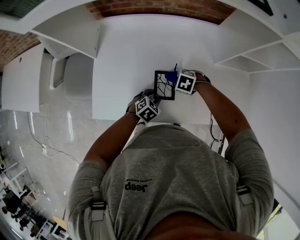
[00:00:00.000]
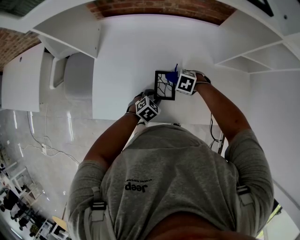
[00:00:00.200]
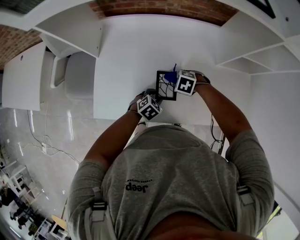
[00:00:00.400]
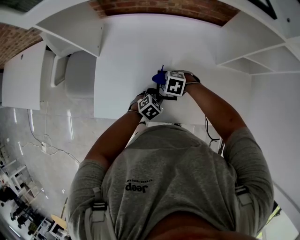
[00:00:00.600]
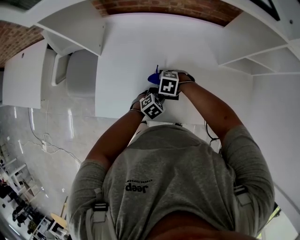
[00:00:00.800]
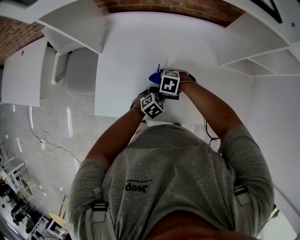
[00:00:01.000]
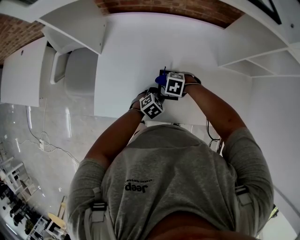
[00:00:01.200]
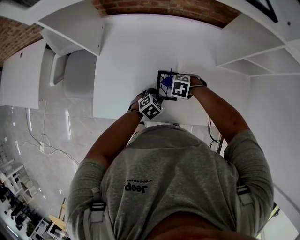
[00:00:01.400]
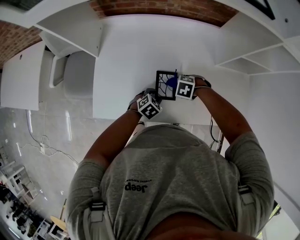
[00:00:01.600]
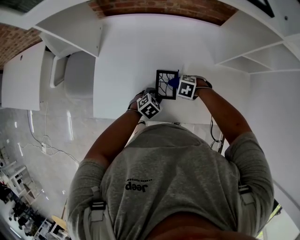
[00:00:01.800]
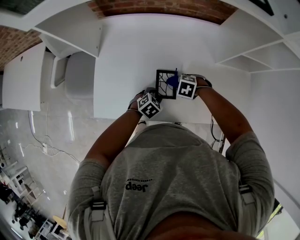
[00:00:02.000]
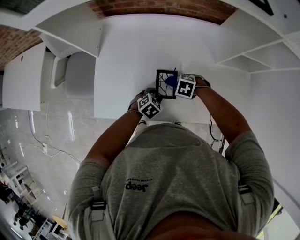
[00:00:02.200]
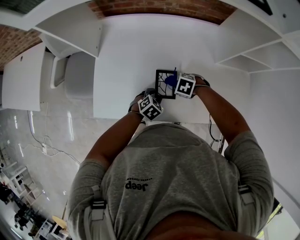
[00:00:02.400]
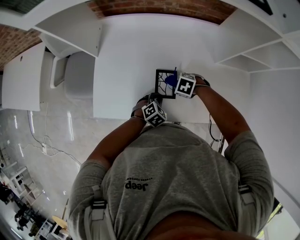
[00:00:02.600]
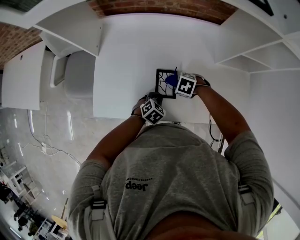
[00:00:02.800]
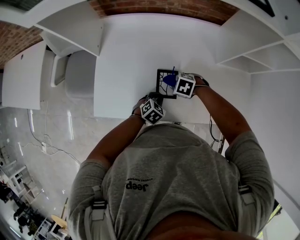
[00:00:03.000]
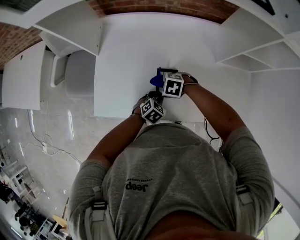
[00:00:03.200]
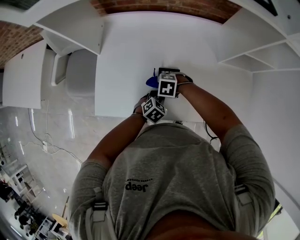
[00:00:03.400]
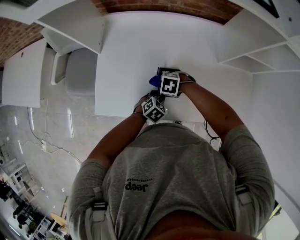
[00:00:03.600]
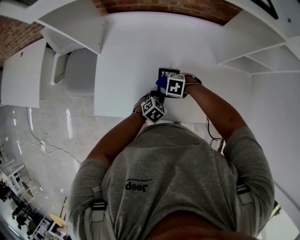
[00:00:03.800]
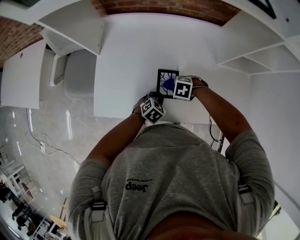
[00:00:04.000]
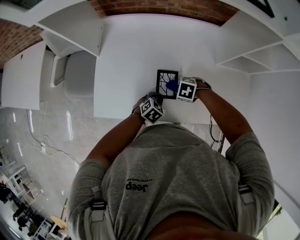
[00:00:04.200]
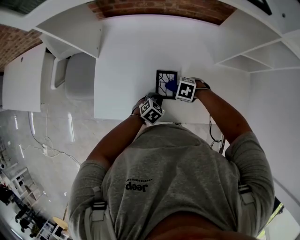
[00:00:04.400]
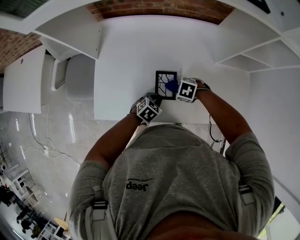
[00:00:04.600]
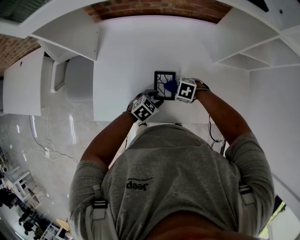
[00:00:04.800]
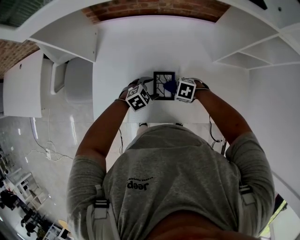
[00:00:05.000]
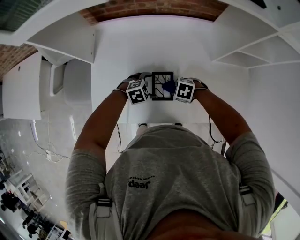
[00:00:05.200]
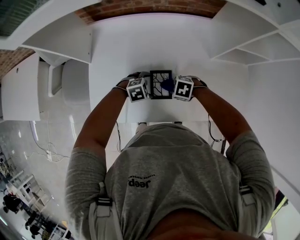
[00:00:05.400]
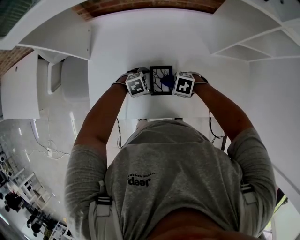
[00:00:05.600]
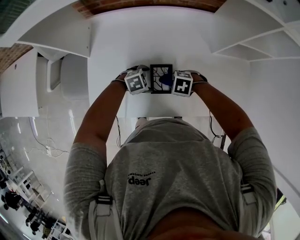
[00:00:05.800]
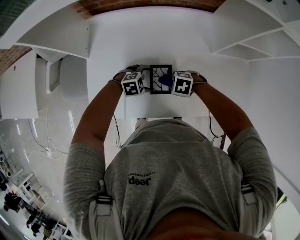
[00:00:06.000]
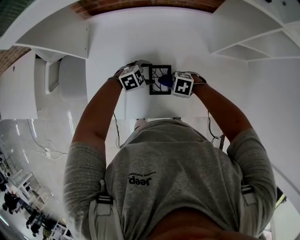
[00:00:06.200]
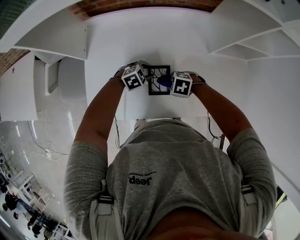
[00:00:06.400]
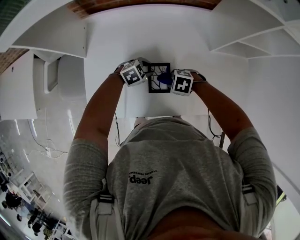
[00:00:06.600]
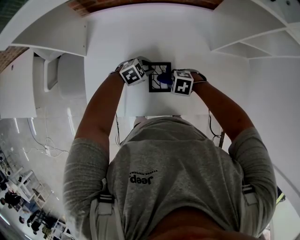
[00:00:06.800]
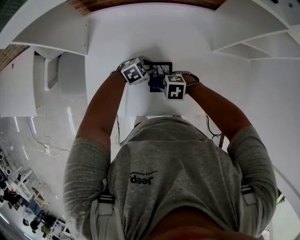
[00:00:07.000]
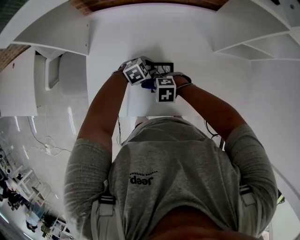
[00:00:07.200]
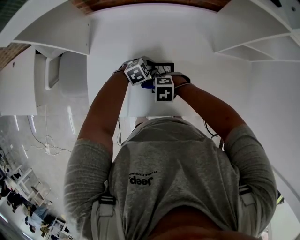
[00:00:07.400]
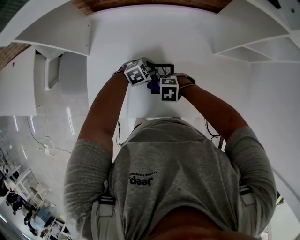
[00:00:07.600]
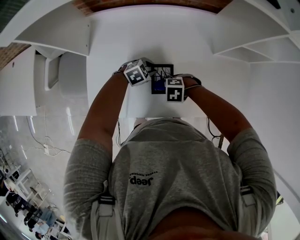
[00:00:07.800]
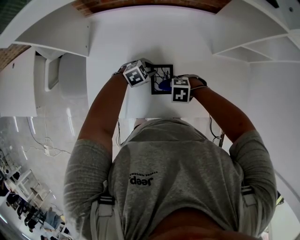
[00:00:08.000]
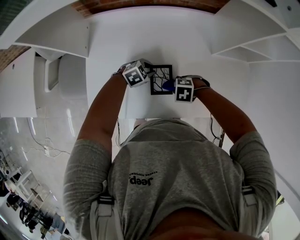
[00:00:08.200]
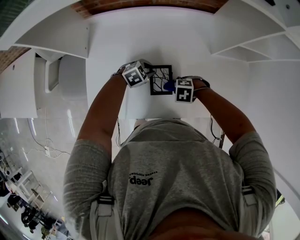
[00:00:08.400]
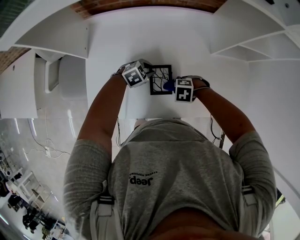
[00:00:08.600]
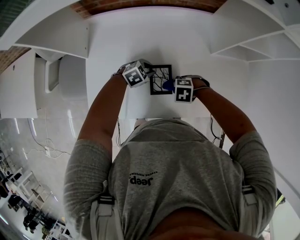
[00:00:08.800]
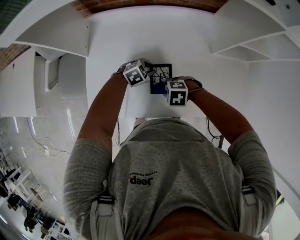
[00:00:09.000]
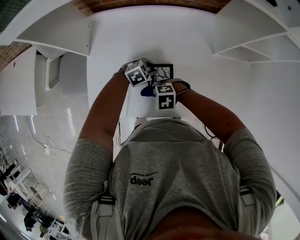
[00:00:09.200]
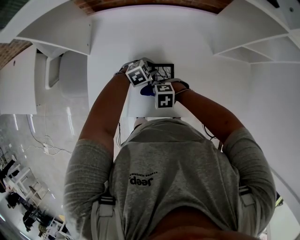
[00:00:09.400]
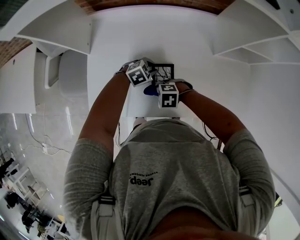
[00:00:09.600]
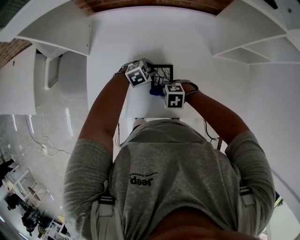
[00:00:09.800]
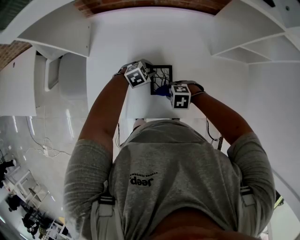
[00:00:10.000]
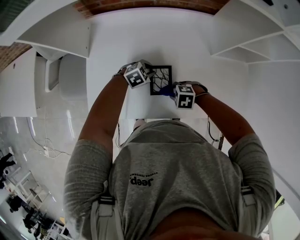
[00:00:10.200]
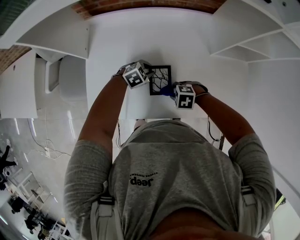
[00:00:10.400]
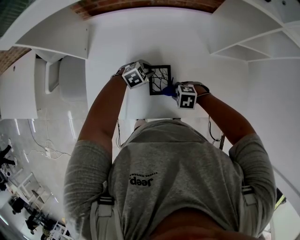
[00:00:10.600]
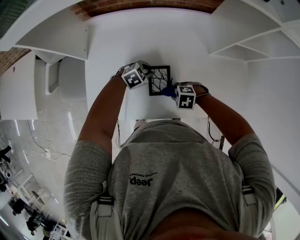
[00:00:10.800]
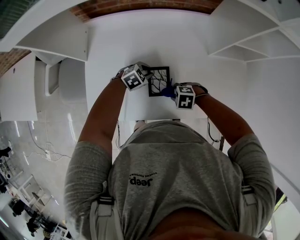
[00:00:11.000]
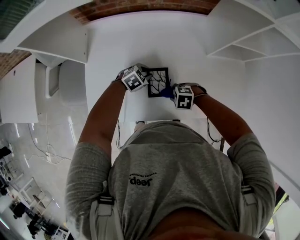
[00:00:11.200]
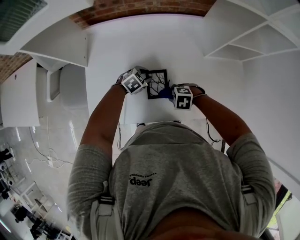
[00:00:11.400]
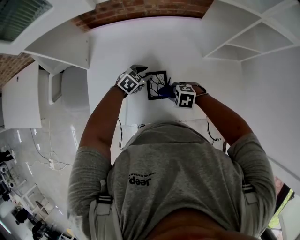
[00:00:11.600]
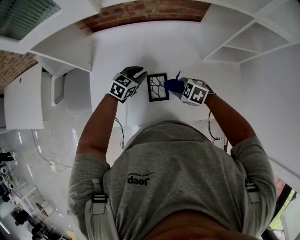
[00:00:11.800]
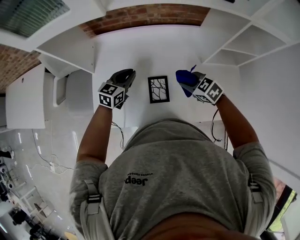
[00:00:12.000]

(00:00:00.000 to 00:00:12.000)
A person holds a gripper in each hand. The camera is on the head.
00:00:01.600 - 00:00:03.000: The grippers make only small movements.
00:00:04.400 - 00:00:06.000: The left gripper changes place by approximately 5 cm, rotates roughly 40 degrees, and opens its fingers.
00:00:06.000 - 00:00:07.600: The left gripper shifts by roughly 5 cm, and closes; the right gripper ends up some 5 cm from where it was.
00:00:09.000 - 00:00:10.400: The right gripper moves some 5 cm.
00:00:10.400 - 00:00:12.000: Both grippers move upward, some 15 cm. The left gripper tilts its fingers some 30 degrees upward. Meanwhile the right gripper turns by approximately 40 degrees.

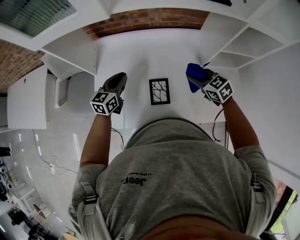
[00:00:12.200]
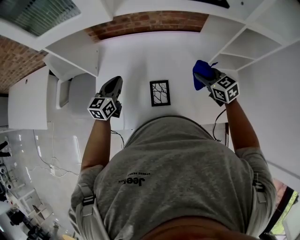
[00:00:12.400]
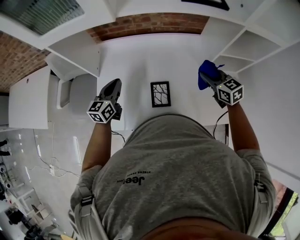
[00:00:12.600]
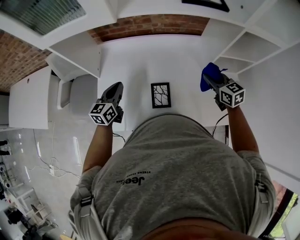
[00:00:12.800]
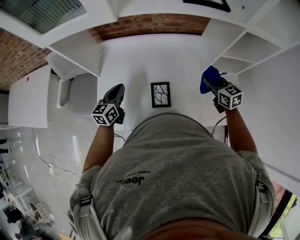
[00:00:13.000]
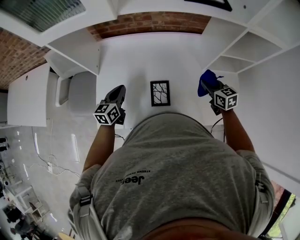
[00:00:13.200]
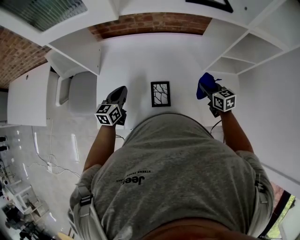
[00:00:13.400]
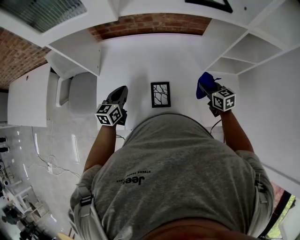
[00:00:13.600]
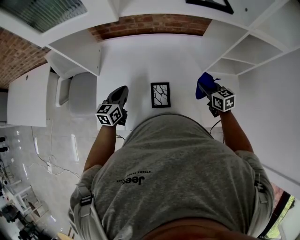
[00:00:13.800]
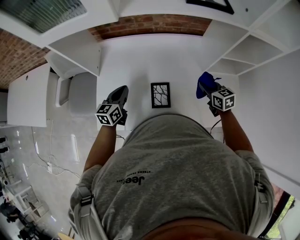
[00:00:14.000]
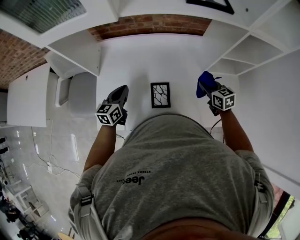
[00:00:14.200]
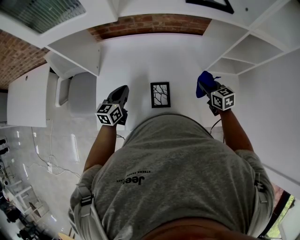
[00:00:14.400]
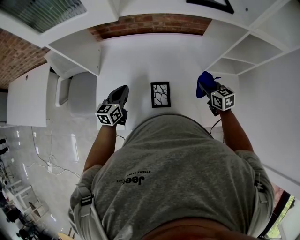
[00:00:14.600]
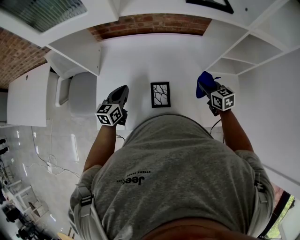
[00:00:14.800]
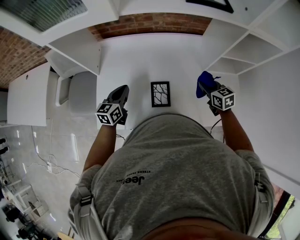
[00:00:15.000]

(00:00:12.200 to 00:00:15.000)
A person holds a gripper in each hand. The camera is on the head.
00:00:12.200 - 00:00:13.600: The left gripper ends up some 5 cm from where it was. Meanwhile the right gripper travels to the right by about 5 cm, and turns by approximately 20 degrees.
00:00:13.600 - 00:00:15.000: The two grippers keep their place.

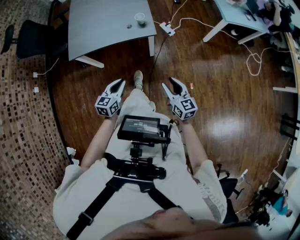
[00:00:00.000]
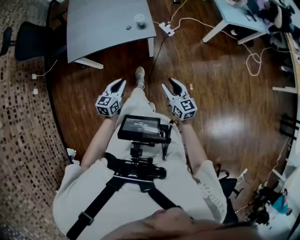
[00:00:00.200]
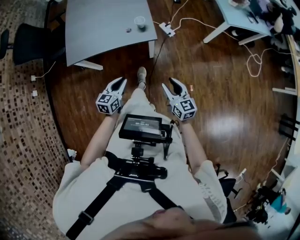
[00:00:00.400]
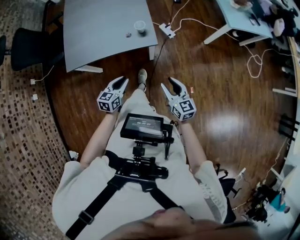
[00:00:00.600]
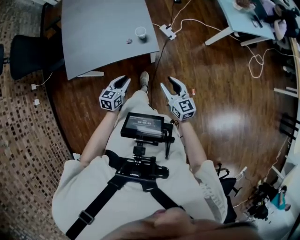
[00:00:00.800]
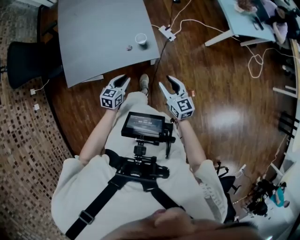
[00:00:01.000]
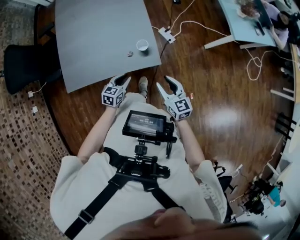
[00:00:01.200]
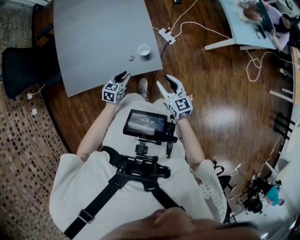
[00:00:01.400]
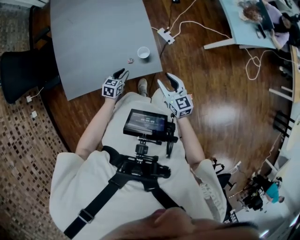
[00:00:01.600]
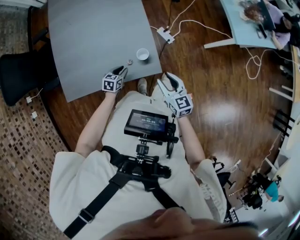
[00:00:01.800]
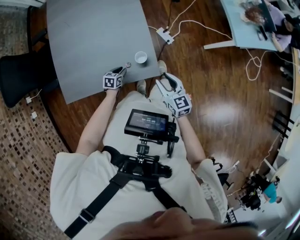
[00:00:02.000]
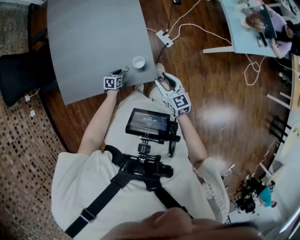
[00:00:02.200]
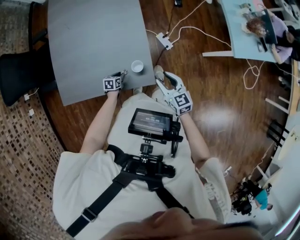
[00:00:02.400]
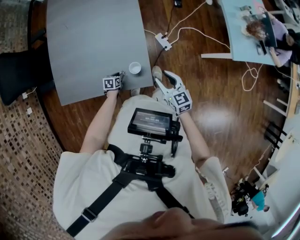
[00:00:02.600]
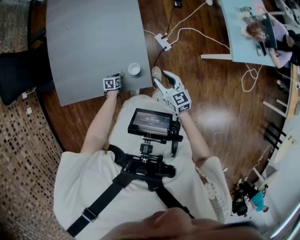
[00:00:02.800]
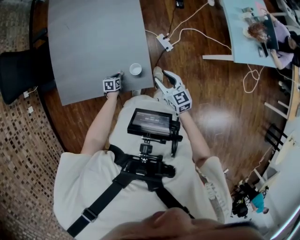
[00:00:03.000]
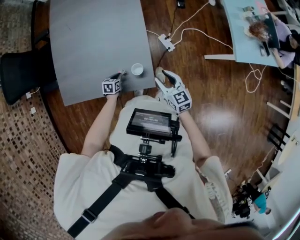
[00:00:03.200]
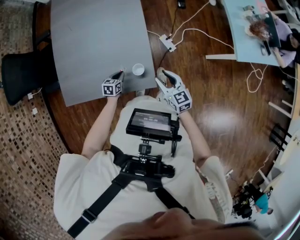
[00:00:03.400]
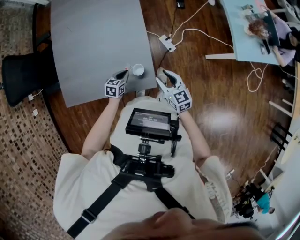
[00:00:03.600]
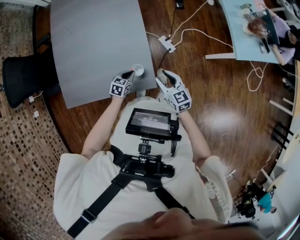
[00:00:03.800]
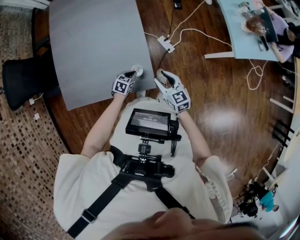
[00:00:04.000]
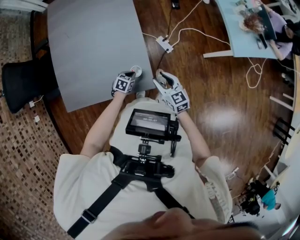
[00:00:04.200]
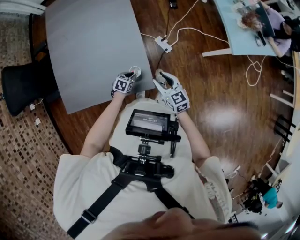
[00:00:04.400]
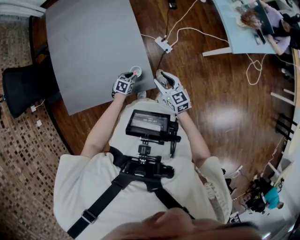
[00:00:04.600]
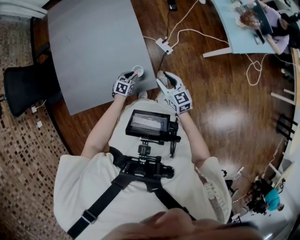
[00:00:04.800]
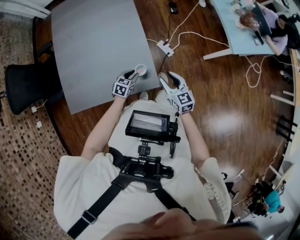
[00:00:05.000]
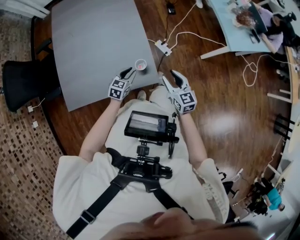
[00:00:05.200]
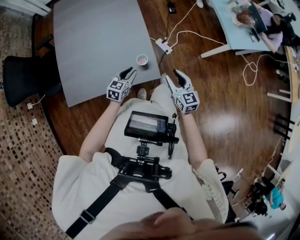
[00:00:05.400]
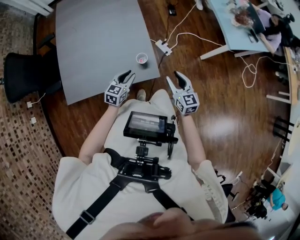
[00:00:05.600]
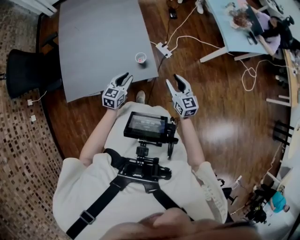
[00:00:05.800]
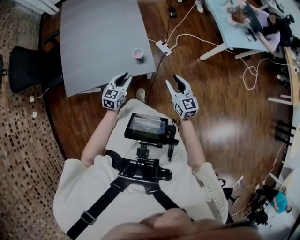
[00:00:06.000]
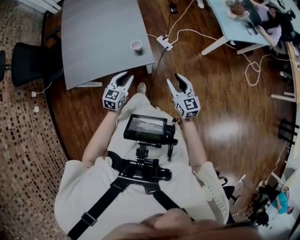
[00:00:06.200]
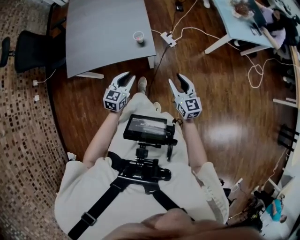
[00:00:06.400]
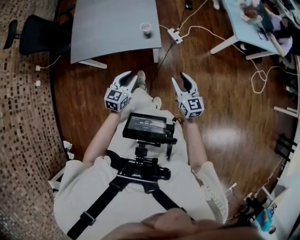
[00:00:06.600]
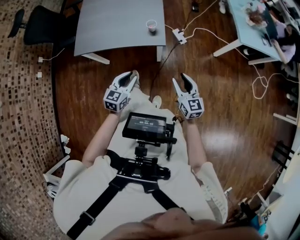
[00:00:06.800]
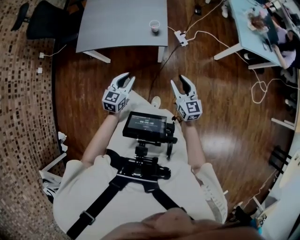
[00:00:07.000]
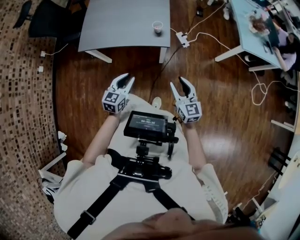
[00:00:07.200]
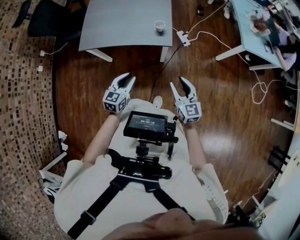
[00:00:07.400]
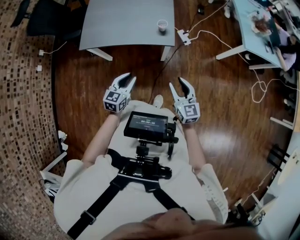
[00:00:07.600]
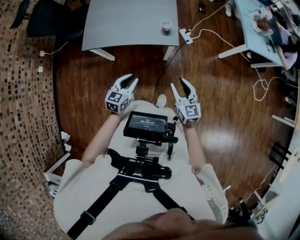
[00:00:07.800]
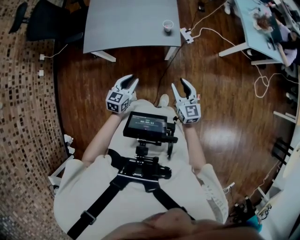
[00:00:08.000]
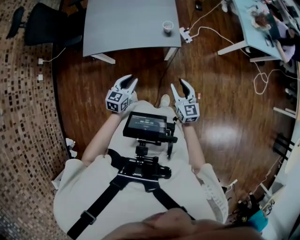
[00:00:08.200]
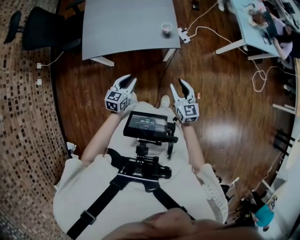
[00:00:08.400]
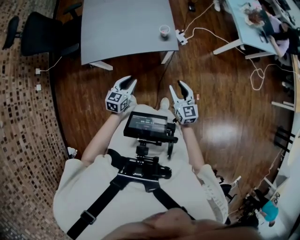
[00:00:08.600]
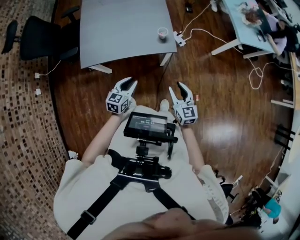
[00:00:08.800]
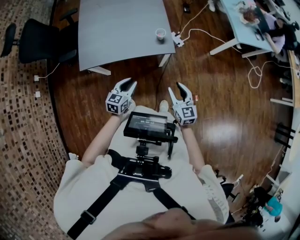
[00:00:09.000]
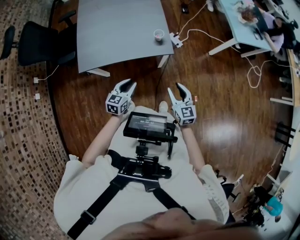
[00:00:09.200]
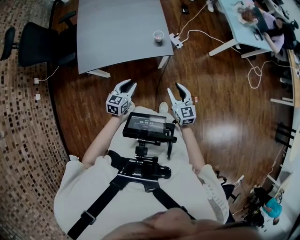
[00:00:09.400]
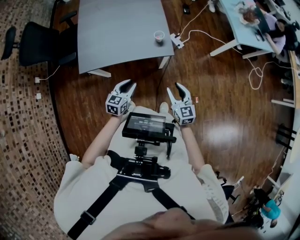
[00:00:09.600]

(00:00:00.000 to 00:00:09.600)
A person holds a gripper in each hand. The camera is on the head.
00:00:00.000 - 00:00:01.600: Both grippers are carried forward, approximately 40 cm. The left gripper moves downward, approximately 20 cm, and changes its angle by about 20 degrees.
00:00:01.600 - 00:00:03.200: The left gripper goes about 5 cm downward, changes its angle by some 20 degrees, and closes its fingers; the right gripper goes some 10 cm forward.
00:00:03.200 - 00:00:04.800: The left gripper shifts about 10 cm to the right, swivels some 30 degrees, and opens up.
00:00:04.800 - 00:00:06.400: The right gripper moves backward and to the right, some 30 cm. The left gripper moves backward and upward, roughly 35 cm, and turns by roughly 30 degrees.
00:00:06.400 - 00:00:08.000: The two grippers go approximately 15 cm to the left and backward.
00:00:08.000 - 00:00:09.600: The left gripper heads forward, covering some 5 cm.
